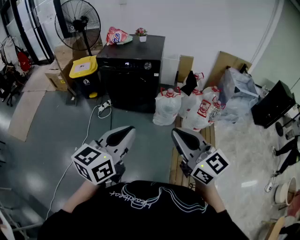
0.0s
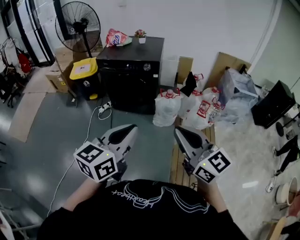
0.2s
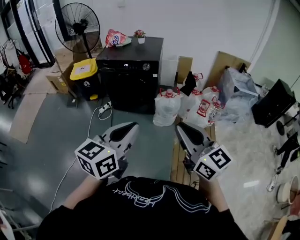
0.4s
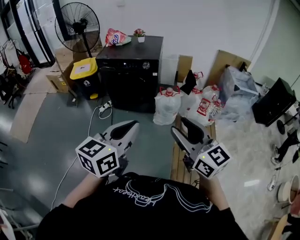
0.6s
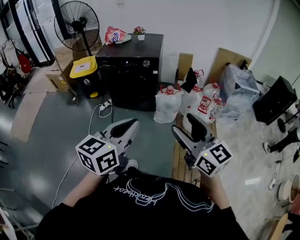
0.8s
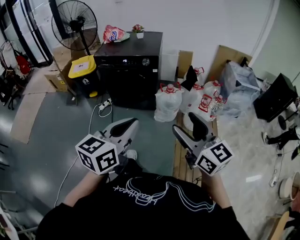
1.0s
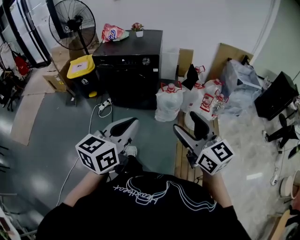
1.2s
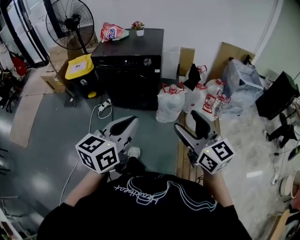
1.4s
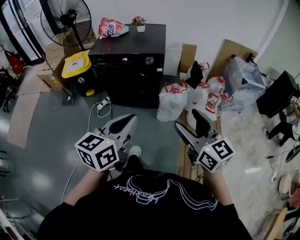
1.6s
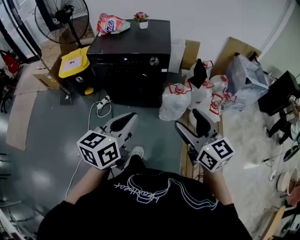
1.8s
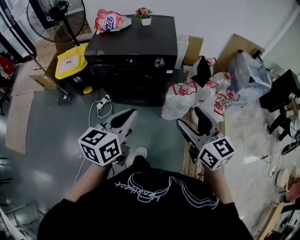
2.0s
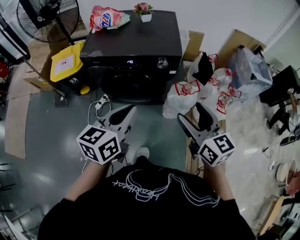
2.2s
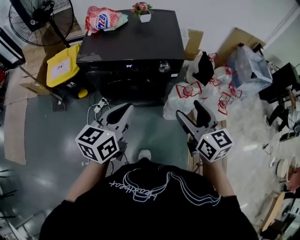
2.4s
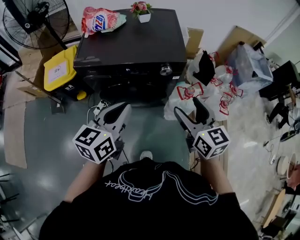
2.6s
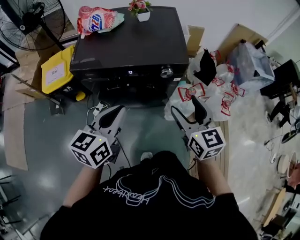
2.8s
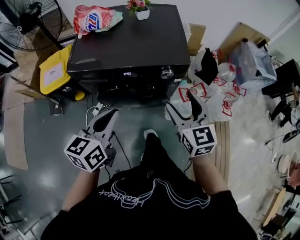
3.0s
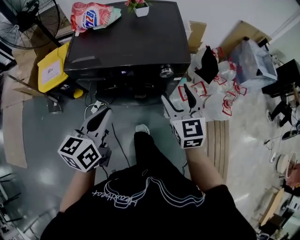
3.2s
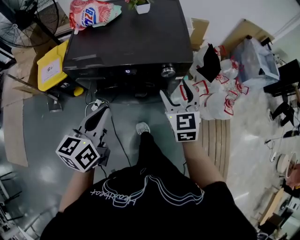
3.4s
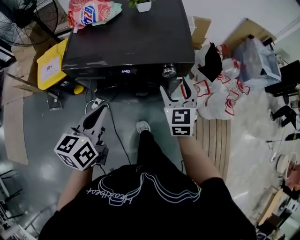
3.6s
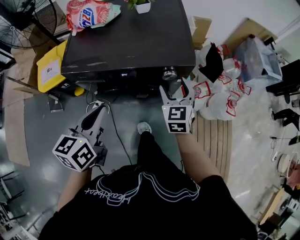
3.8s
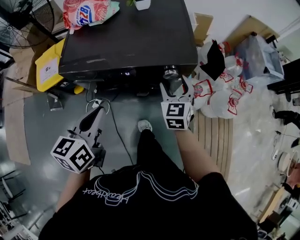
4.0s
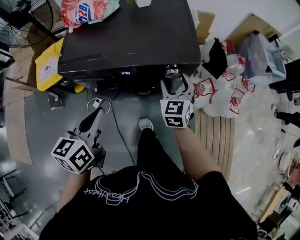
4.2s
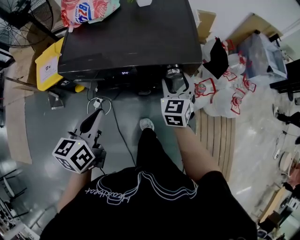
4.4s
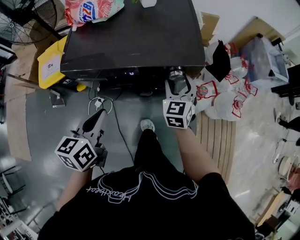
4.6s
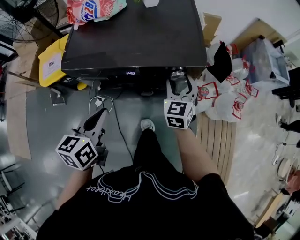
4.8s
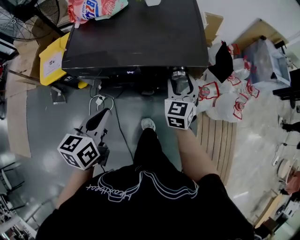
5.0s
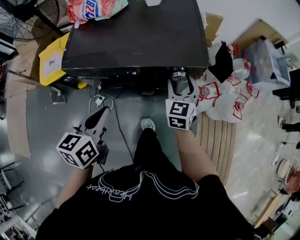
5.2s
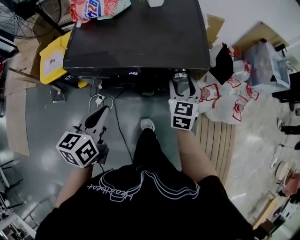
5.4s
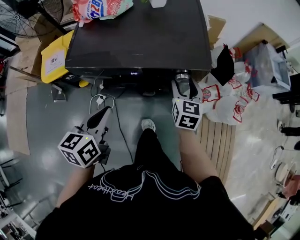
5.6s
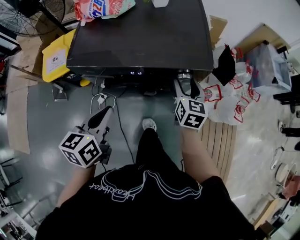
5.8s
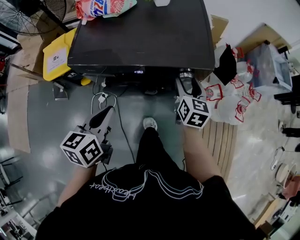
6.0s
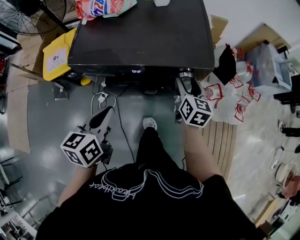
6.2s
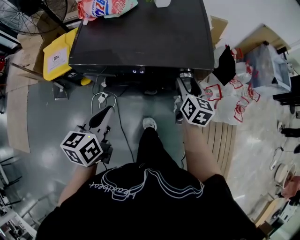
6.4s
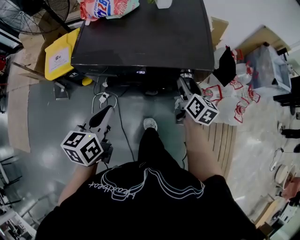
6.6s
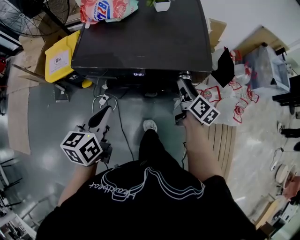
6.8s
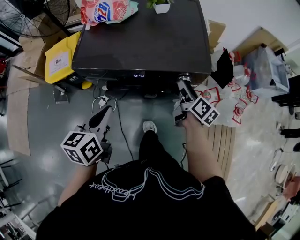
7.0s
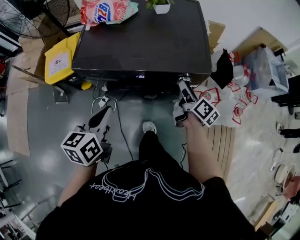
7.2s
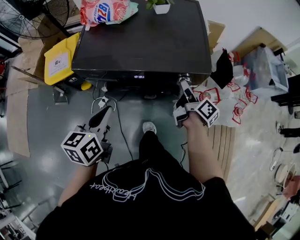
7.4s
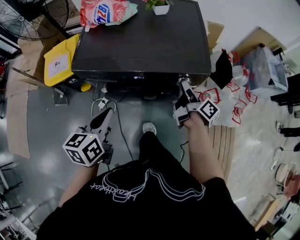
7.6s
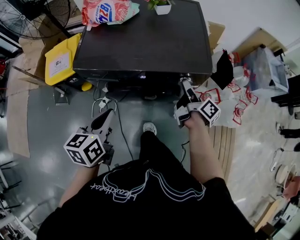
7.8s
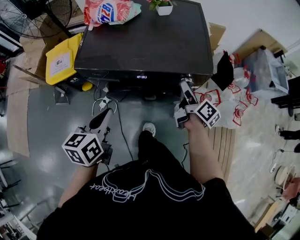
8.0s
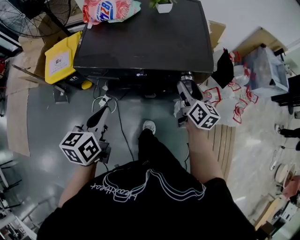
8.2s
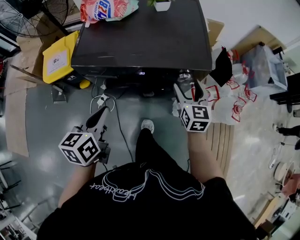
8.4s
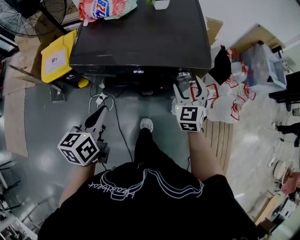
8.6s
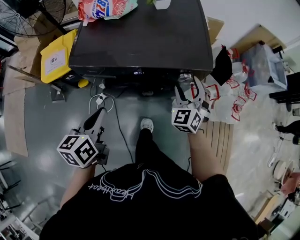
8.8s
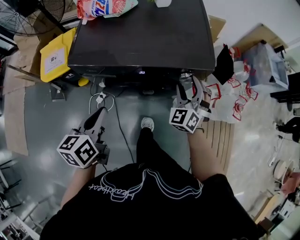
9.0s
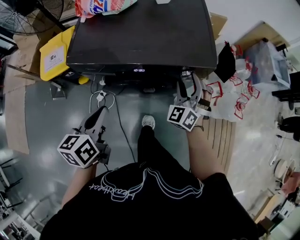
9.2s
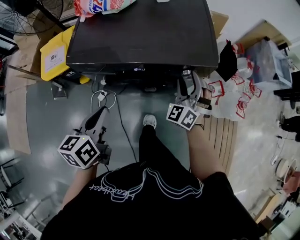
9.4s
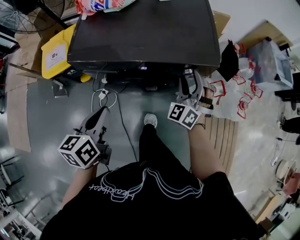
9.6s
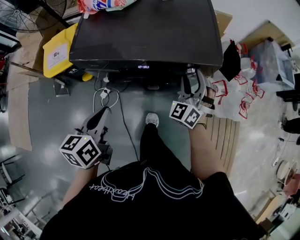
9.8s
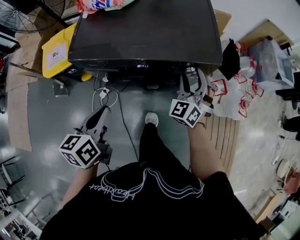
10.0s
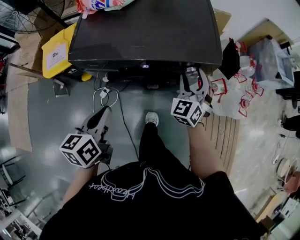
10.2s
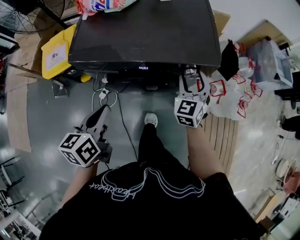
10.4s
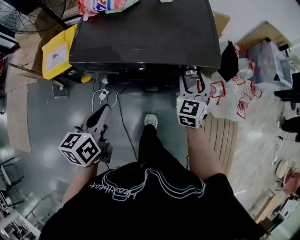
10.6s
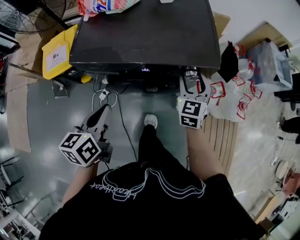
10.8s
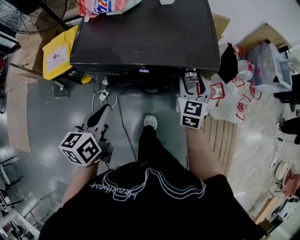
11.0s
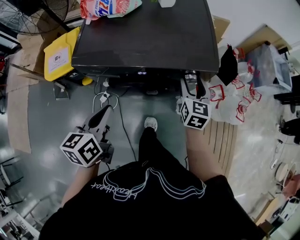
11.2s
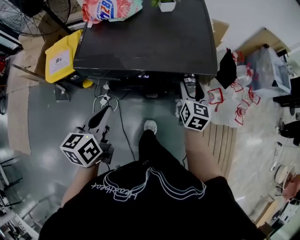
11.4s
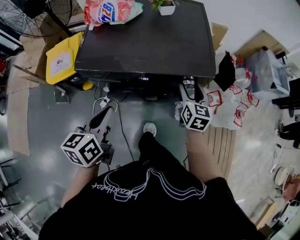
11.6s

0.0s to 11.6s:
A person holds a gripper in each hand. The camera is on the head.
0.0s to 1.4s: Both grippers move forward, about 10 cm. The right gripper opens its fingers.
1.4s to 2.8s: The pair of grippers is taken forward and to the left, some 40 cm. The right gripper turns by roughly 20 degrees.
2.8s to 4.4s: The right gripper shifts approximately 20 cm forward and downward, and turns by some 30 degrees. Meanwhile the left gripper moves to the left, downward and forward, some 10 cm.
4.4s to 5.8s: The right gripper rotates some 30 degrees.
5.8s to 7.2s: The right gripper rotates around the line of its fingers by roughly 50 degrees, clockwise from behind.
7.2s to 8.8s: The right gripper rolls counterclockwise, seen from behind, by some 100 degrees.
8.8s to 10.2s: The grippers move only a little.
10.2s to 11.6s: The right gripper rotates around the line of its fingers by about 50 degrees, clockwise from behind.

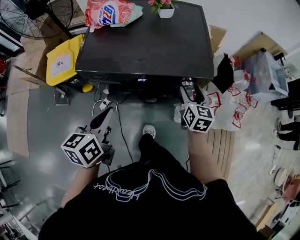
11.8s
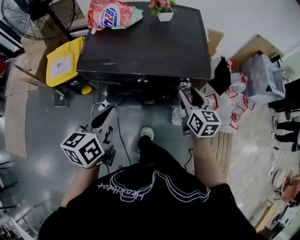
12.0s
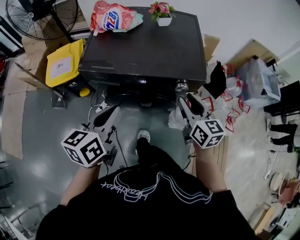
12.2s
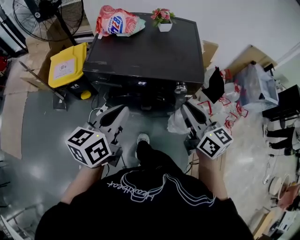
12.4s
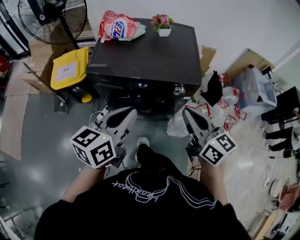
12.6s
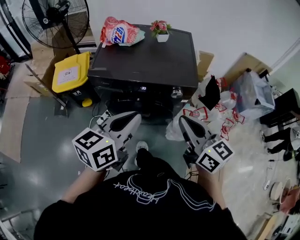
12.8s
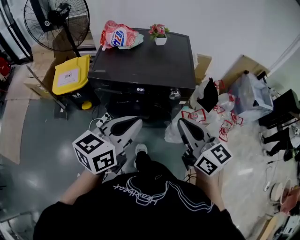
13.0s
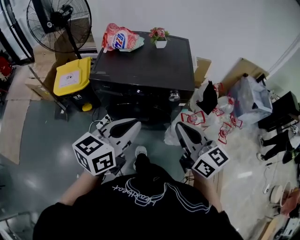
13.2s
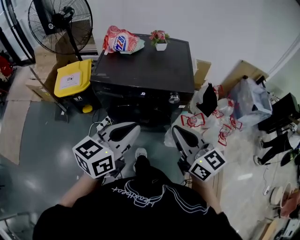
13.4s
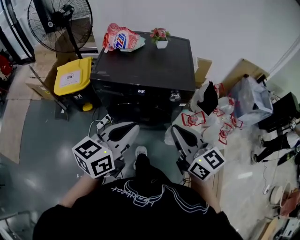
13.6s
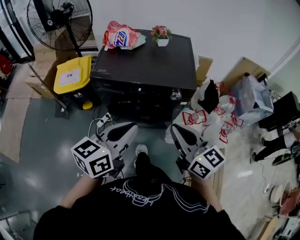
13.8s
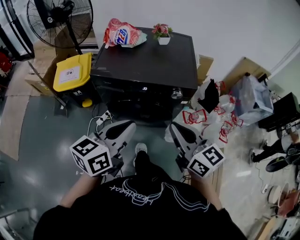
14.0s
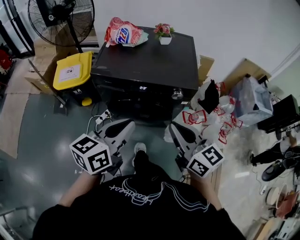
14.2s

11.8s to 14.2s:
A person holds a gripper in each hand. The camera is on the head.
11.8s to 13.0s: The right gripper is displaced upward and backward by about 30 cm, changes its angle by roughly 30 degrees, and closes up. The left gripper moves upward, to the right and backward, about 20 cm, and rotates approximately 30 degrees.
13.0s to 14.2s: The grippers move only a little.

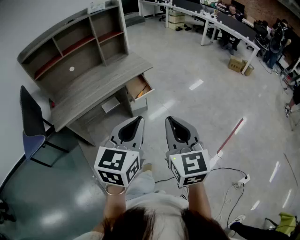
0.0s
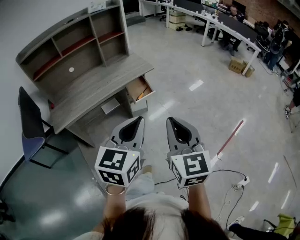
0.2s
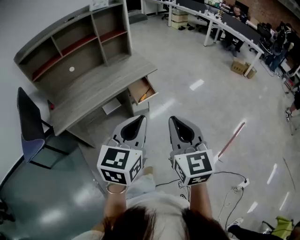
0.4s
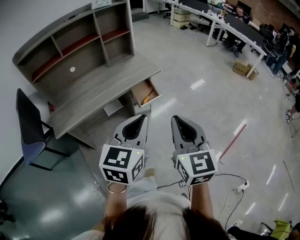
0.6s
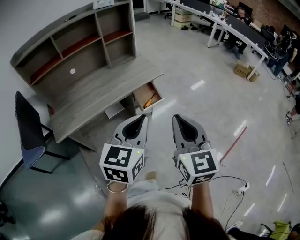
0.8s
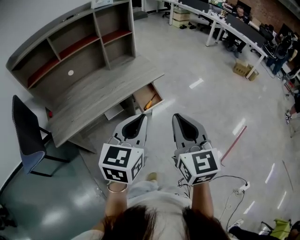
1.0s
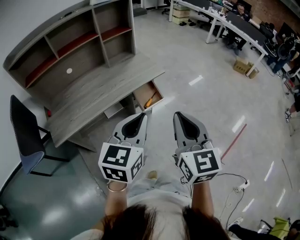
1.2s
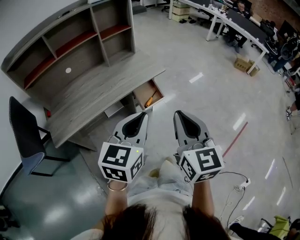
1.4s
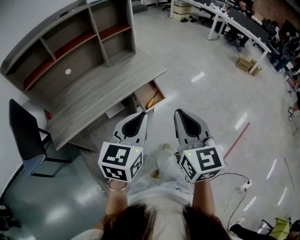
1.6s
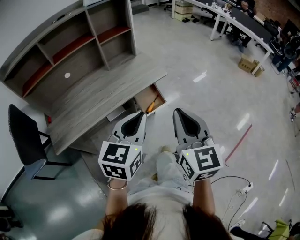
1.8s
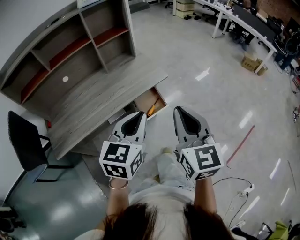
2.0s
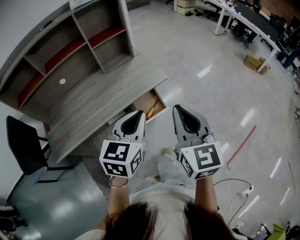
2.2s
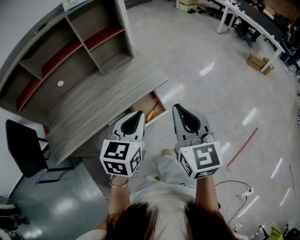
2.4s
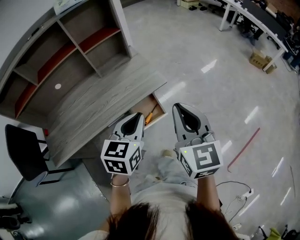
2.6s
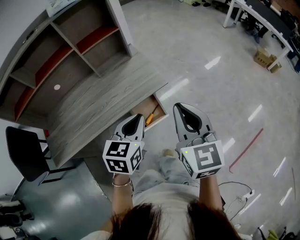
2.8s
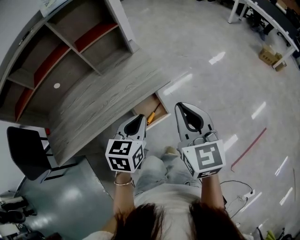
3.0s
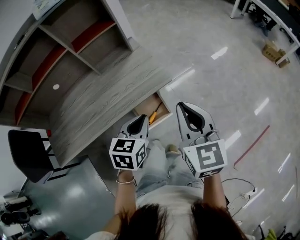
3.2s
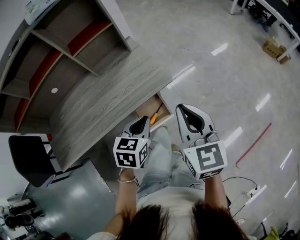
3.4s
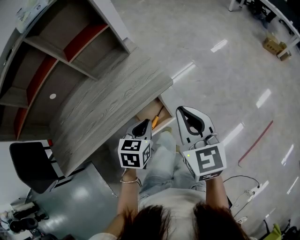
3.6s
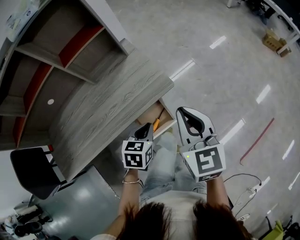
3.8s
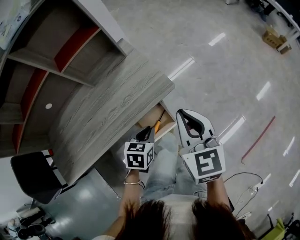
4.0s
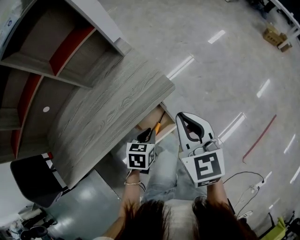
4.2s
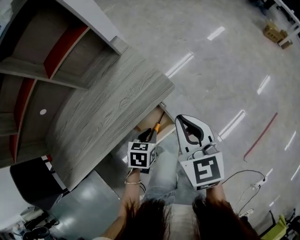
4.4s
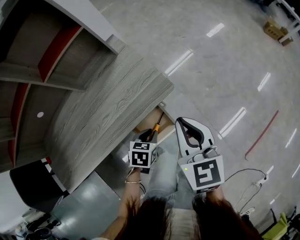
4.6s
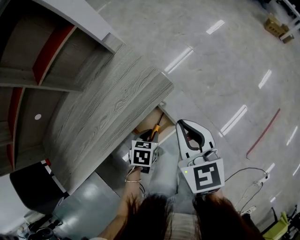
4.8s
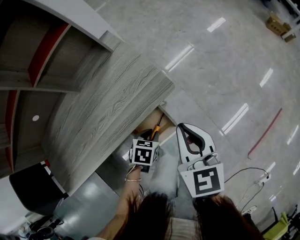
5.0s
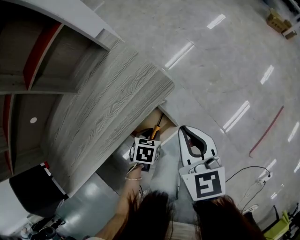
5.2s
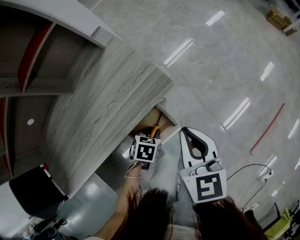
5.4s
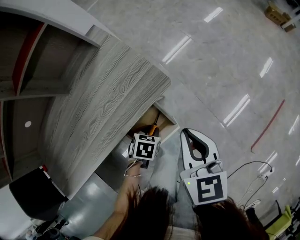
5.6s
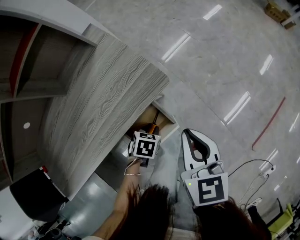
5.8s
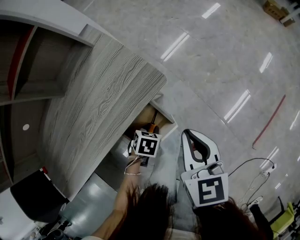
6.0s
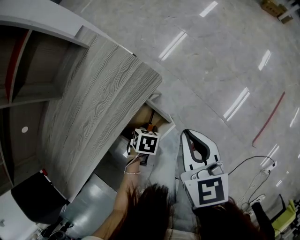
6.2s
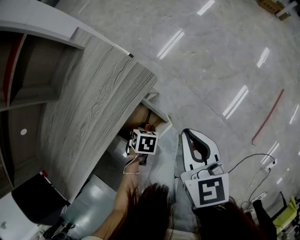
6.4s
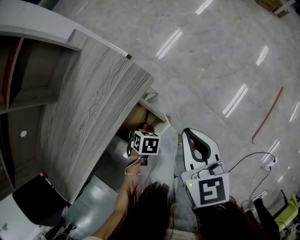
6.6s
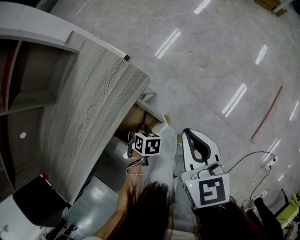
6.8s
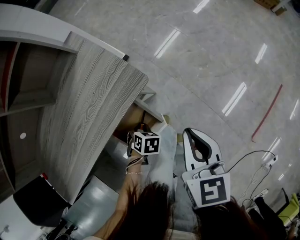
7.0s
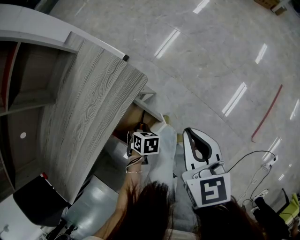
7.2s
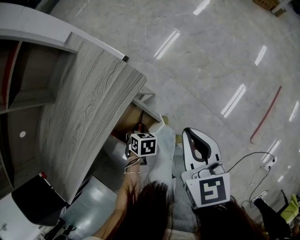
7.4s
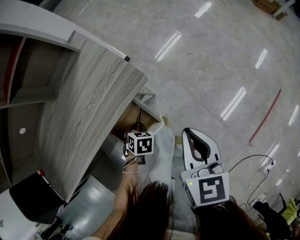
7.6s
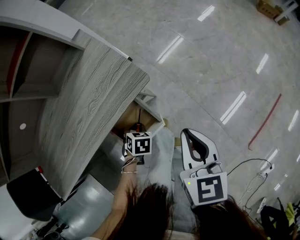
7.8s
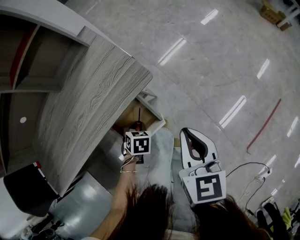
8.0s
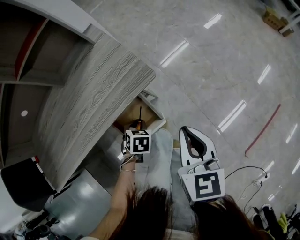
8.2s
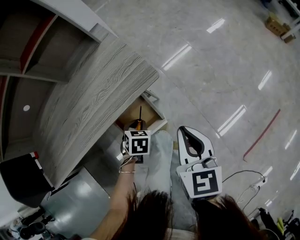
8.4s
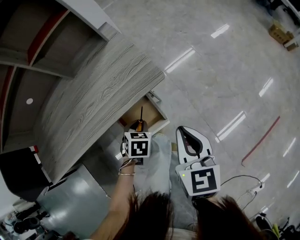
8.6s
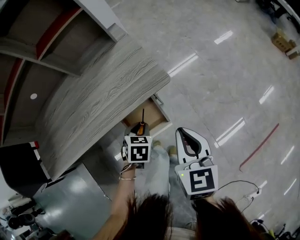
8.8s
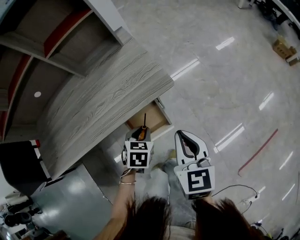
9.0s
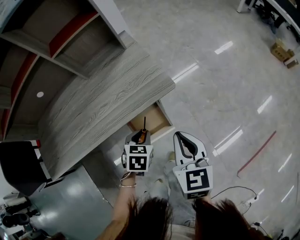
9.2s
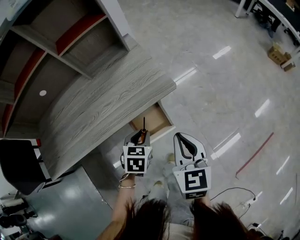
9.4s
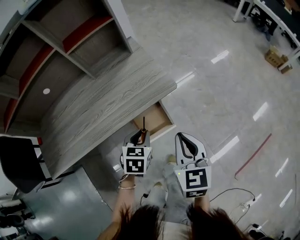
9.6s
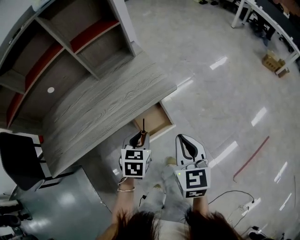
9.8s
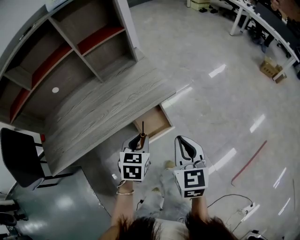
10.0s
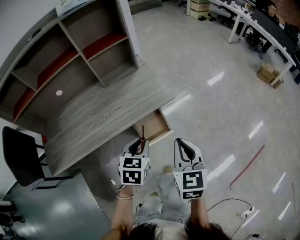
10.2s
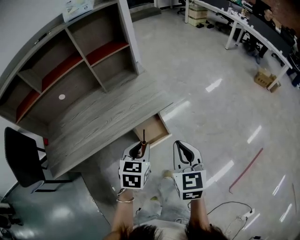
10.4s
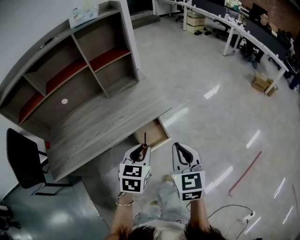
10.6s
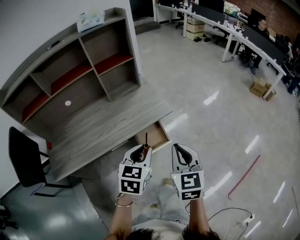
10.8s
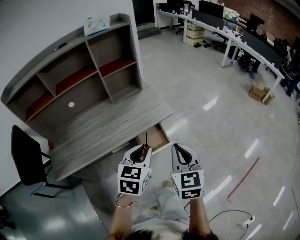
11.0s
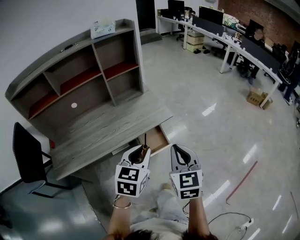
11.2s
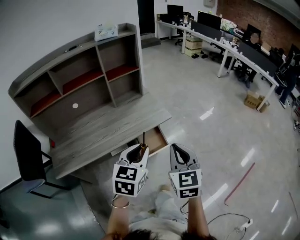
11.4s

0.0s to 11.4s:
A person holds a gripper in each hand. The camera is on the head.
0.0s to 1.4s: The two grippers go some 20 cm forward and to the left.
1.4s to 2.8s: The right gripper goes about 25 cm forward, while the left gripper shifts roughly 30 cm forward and downward.
2.8s to 4.2s: The right gripper moves downward and forward, some 20 cm. Meanwhile the left gripper goes about 25 cm downward, and changes its angle by about 30 degrees.
4.2s to 5.6s: Both grippers travel together downward, some 15 cm. The left gripper turns by approximately 20 degrees.
5.6s to 7.2s: The left gripper swivels approximately 20 degrees; the right gripper changes place by approximately 10 cm.
7.2s to 8.6s: The left gripper shifts about 10 cm upward; the right gripper changes place by some 5 cm.
8.6s to 10.0s: The right gripper goes some 15 cm upward, backward and to the left; the left gripper is displaced upward and backward by about 20 cm, and changes its angle by some 20 degrees.
10.0s to 11.4s: Both grippers travel together upward and backward, some 20 cm. The left gripper swivels some 20 degrees.
